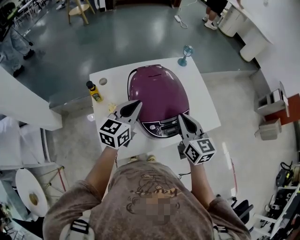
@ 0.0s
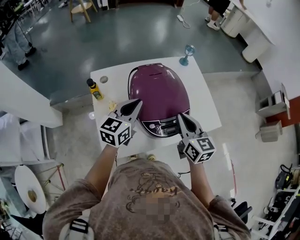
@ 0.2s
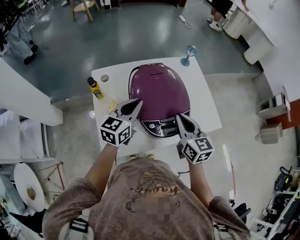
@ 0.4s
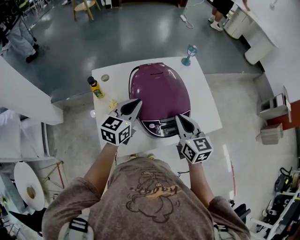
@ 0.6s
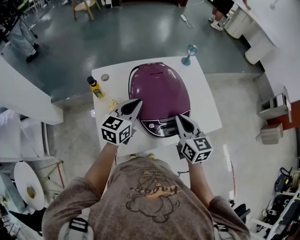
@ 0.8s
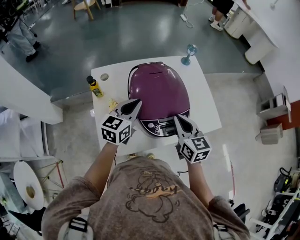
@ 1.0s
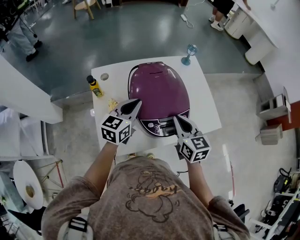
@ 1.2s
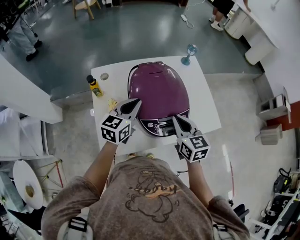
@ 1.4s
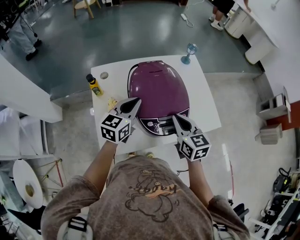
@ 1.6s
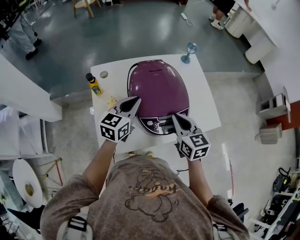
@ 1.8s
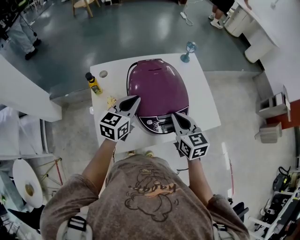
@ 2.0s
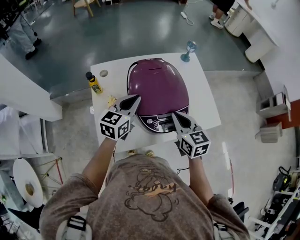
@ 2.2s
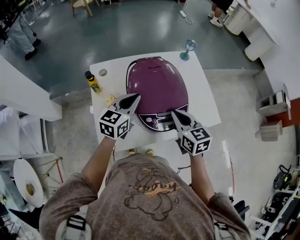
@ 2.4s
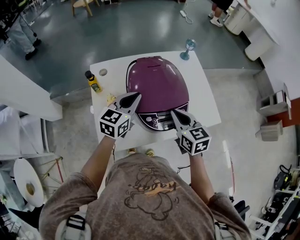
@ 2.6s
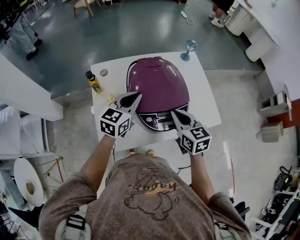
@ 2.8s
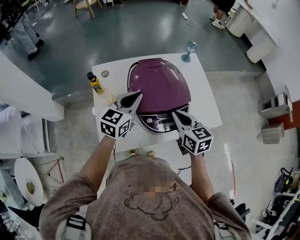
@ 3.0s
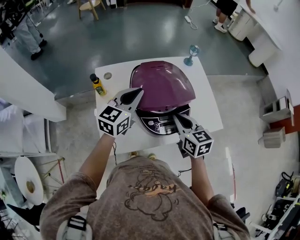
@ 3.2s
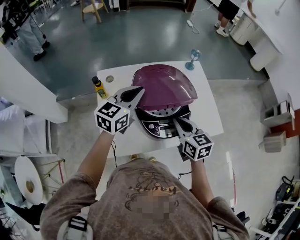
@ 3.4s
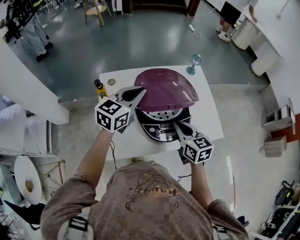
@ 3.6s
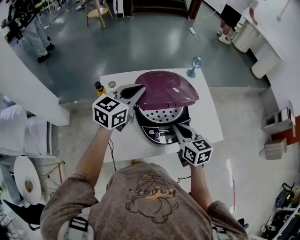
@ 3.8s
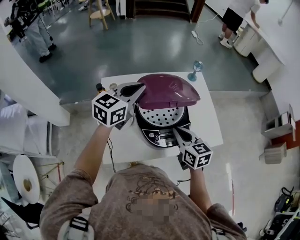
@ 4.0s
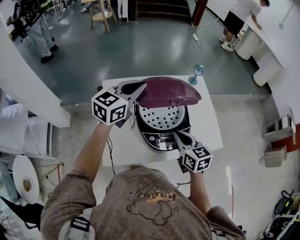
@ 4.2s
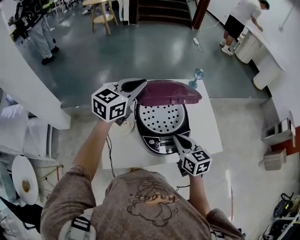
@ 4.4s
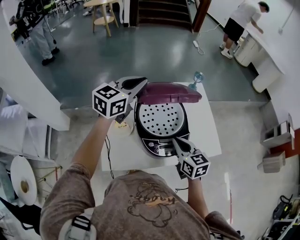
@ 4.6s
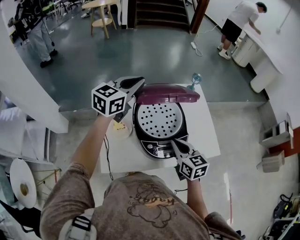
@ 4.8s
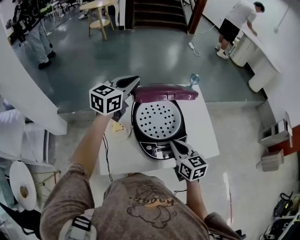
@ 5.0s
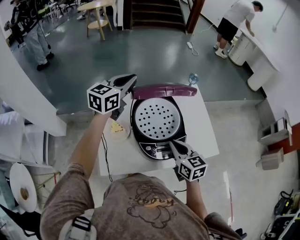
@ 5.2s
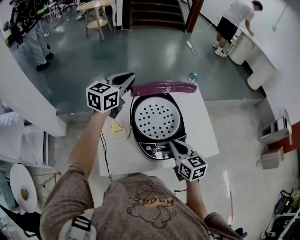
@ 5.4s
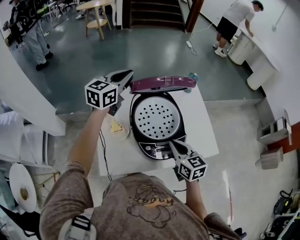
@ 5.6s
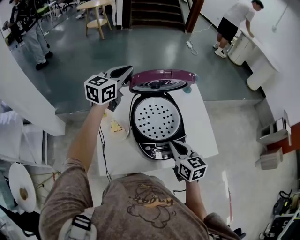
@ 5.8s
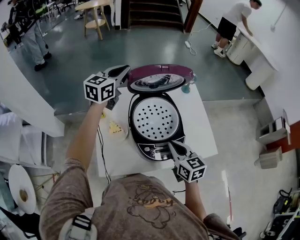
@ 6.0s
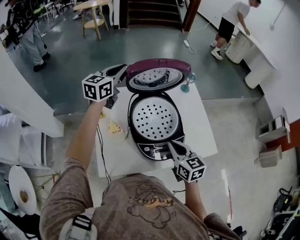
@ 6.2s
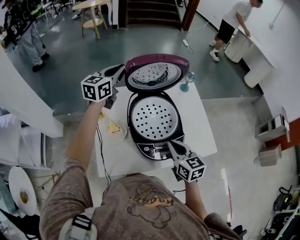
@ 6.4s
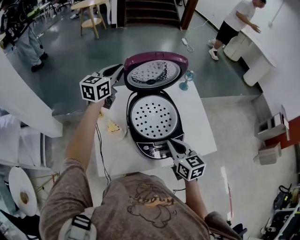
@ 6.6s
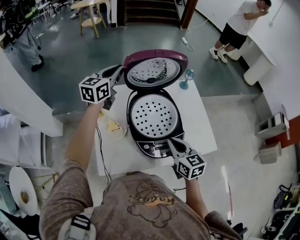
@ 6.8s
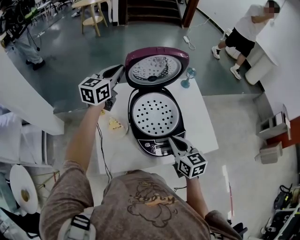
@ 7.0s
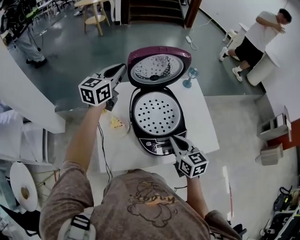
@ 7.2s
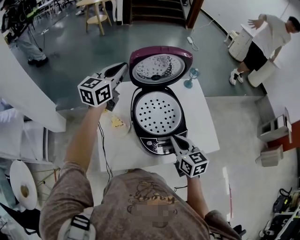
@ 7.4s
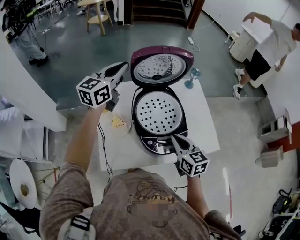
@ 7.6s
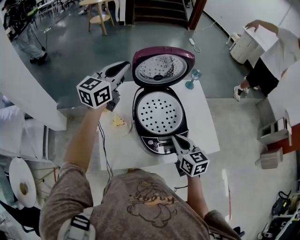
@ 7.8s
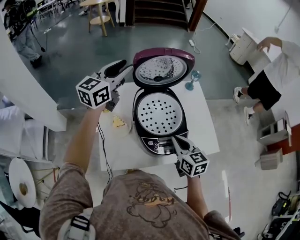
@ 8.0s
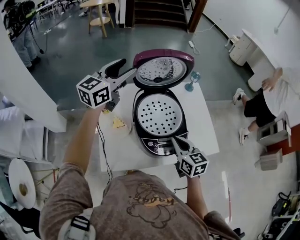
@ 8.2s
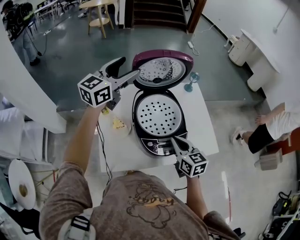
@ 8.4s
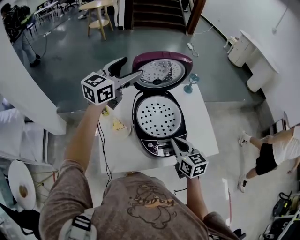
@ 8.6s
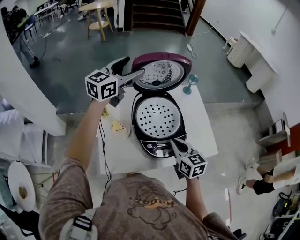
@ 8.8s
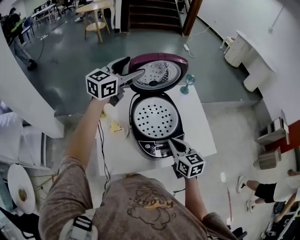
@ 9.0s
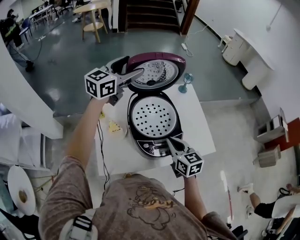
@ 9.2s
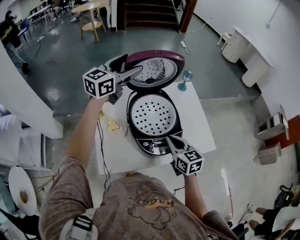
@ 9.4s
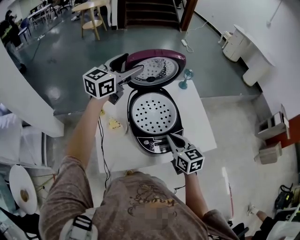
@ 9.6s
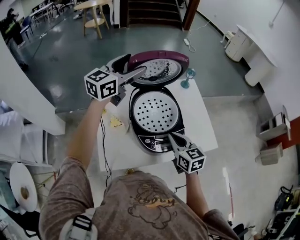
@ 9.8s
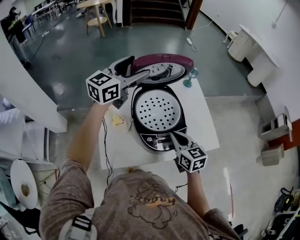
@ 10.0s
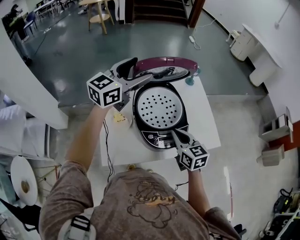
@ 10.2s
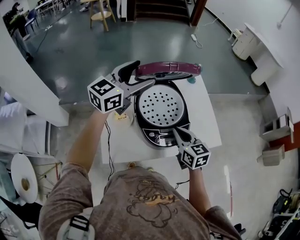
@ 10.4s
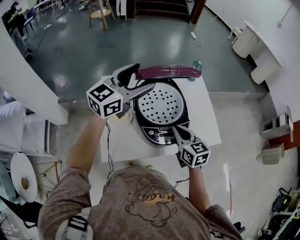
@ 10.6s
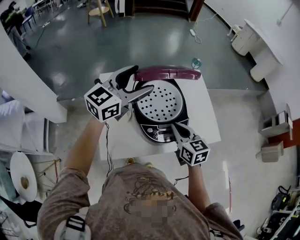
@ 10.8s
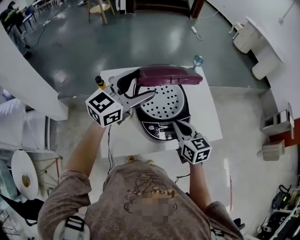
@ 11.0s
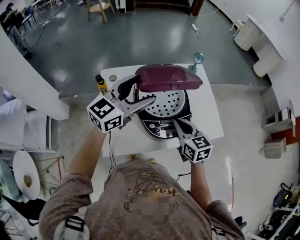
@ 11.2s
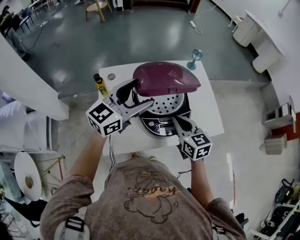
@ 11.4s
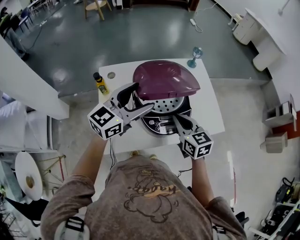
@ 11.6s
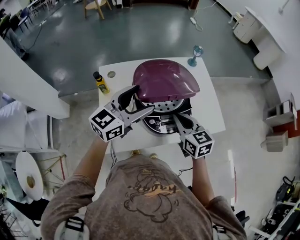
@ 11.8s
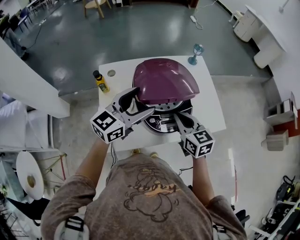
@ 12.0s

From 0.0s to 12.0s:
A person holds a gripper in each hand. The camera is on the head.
From 0.0s to 3.0s: There are only small adjustments of the grippers.
From 3.0s to 4.4s: The left gripper is displaced upward and forward by roughly 15 cm.
From 4.4s to 6.0s: The left gripper goes some 10 cm forward and to the left.
From 6.0s to 7.6s: The left gripper ends up about 5 cm from where it was.
From 7.6s to 9.0s: The left gripper moves about 5 cm, and opens up.
From 9.0s to 10.4s: The left gripper shifts some 10 cm backward.
From 10.4s to 12.0s: The left gripper moves downward and backward, about 15 cm.

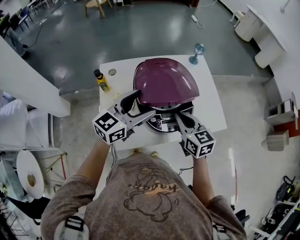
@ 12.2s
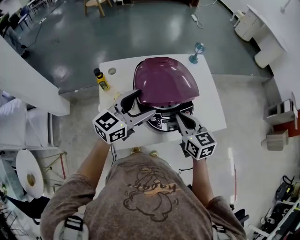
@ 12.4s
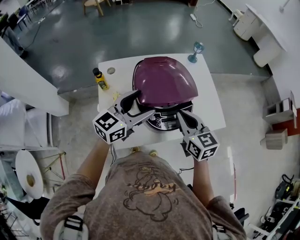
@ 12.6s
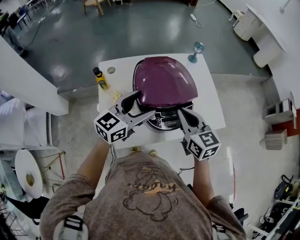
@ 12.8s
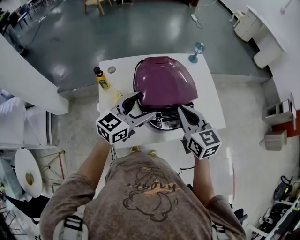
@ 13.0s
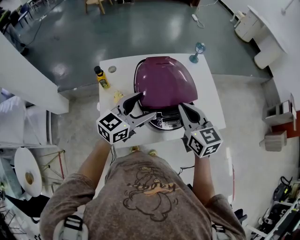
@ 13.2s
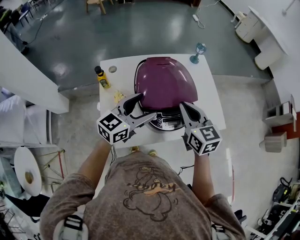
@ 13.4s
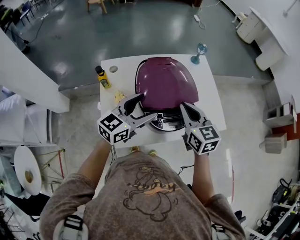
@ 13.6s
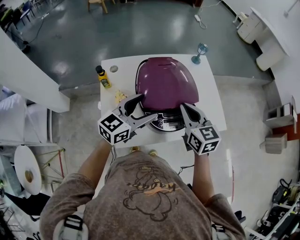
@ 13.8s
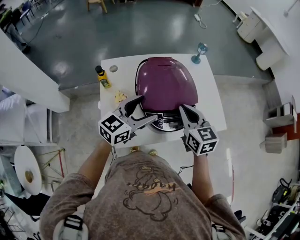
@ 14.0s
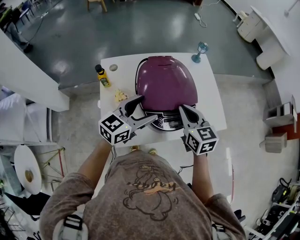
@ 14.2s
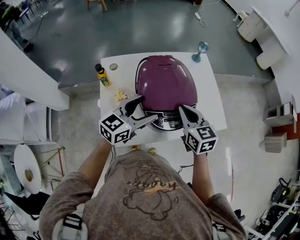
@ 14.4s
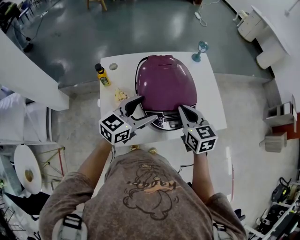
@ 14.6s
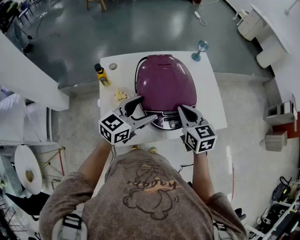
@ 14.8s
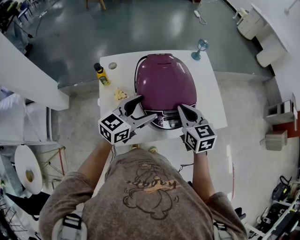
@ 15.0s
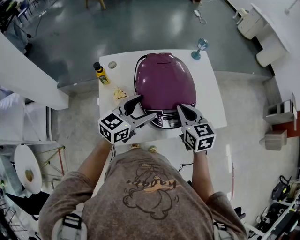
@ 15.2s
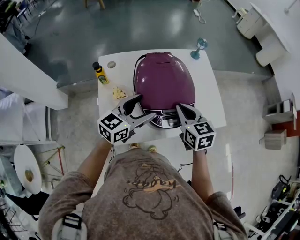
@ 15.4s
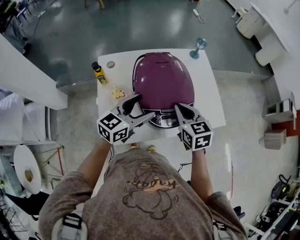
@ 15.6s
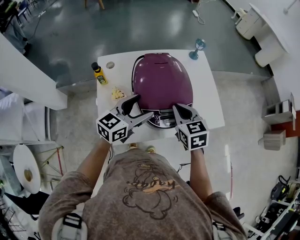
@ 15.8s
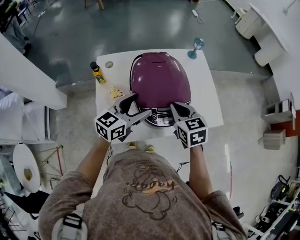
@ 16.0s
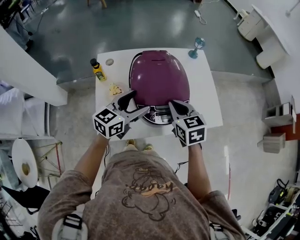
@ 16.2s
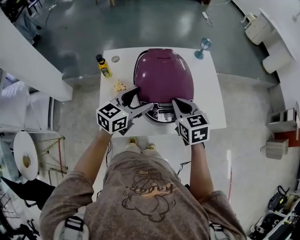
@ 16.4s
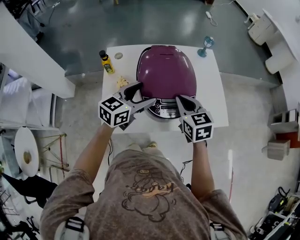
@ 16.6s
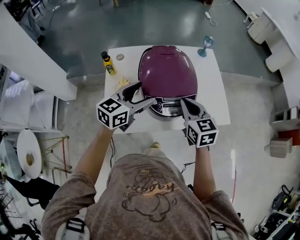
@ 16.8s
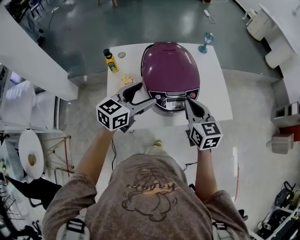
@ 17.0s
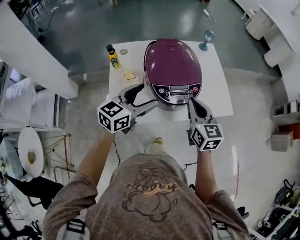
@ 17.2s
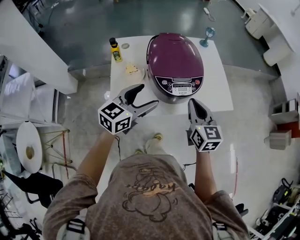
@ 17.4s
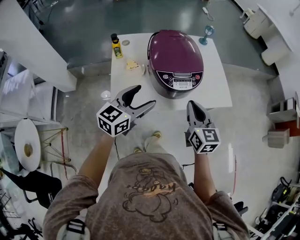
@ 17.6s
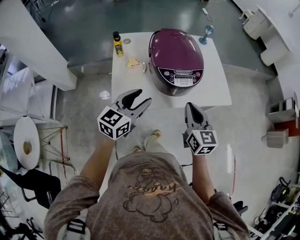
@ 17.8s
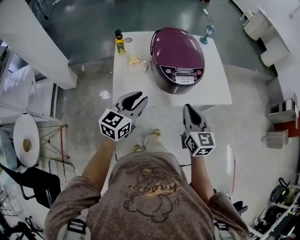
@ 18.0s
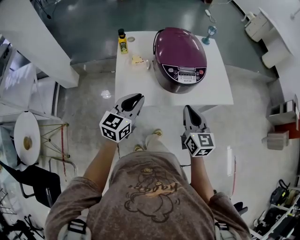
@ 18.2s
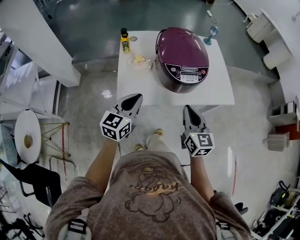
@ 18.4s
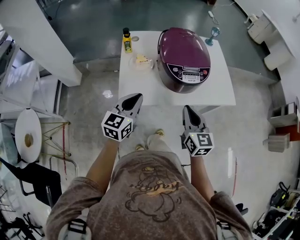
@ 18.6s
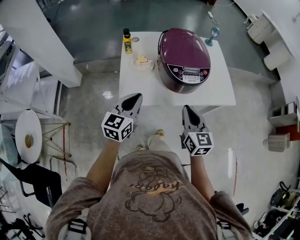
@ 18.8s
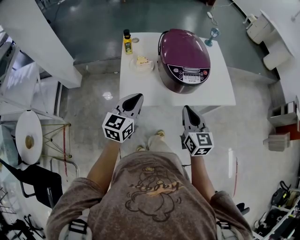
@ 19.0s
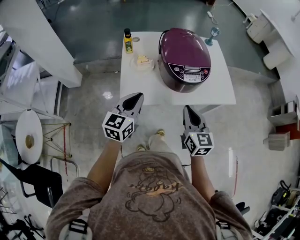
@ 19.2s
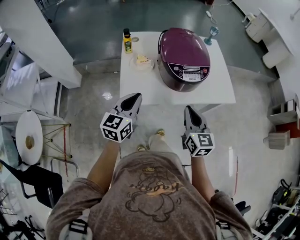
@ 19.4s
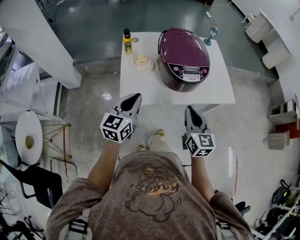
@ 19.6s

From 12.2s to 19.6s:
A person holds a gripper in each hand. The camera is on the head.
From 13.6s to 16.6s: There are only small adjustments of the grippers.
From 16.6s to 18.2s: The two grippers go about 20 cm backward. The right gripper swivels some 20 degrees. Meanwhile the left gripper closes.
From 18.2s to 19.6s: The grippers stay close to where they were, moving slightly.

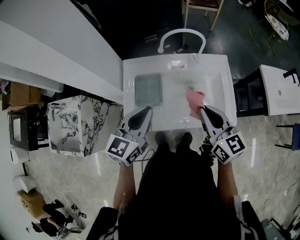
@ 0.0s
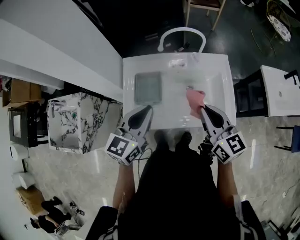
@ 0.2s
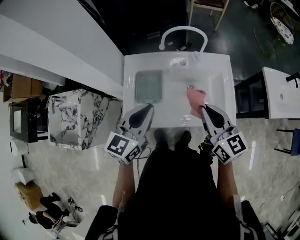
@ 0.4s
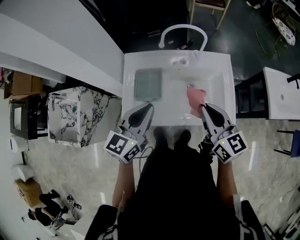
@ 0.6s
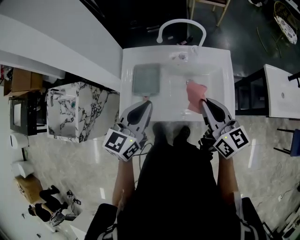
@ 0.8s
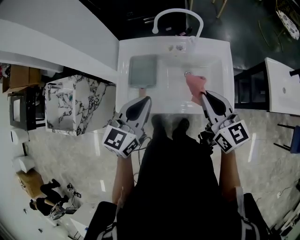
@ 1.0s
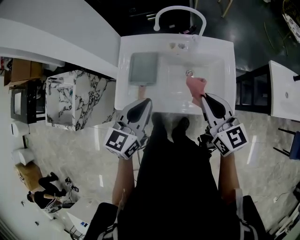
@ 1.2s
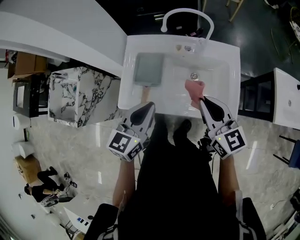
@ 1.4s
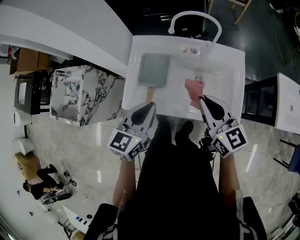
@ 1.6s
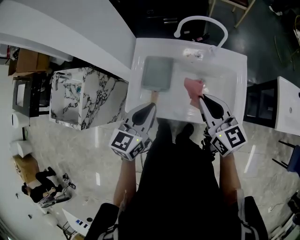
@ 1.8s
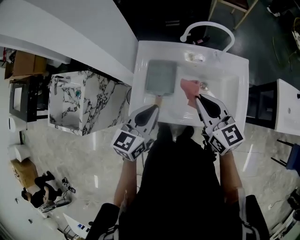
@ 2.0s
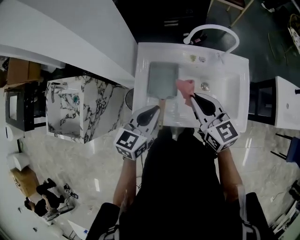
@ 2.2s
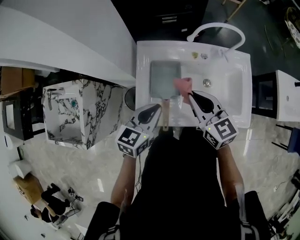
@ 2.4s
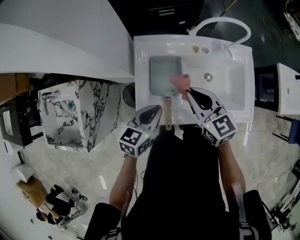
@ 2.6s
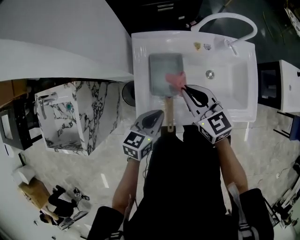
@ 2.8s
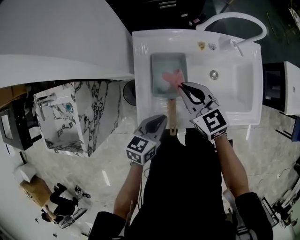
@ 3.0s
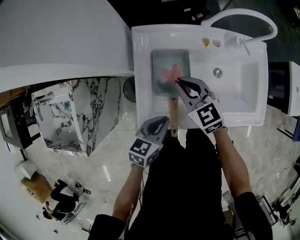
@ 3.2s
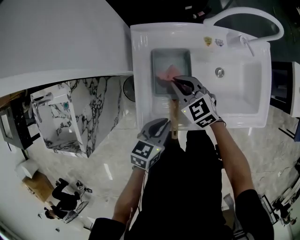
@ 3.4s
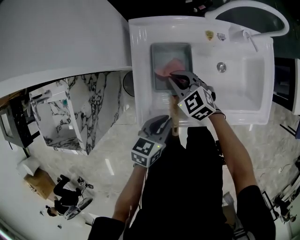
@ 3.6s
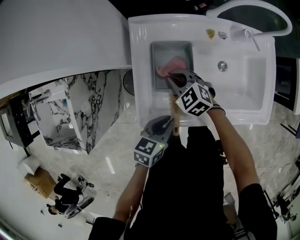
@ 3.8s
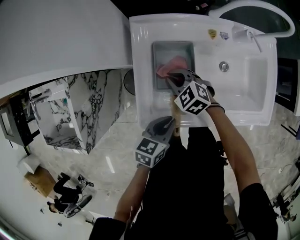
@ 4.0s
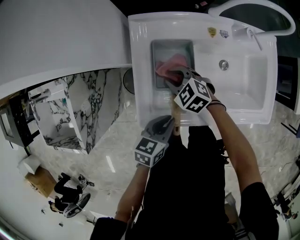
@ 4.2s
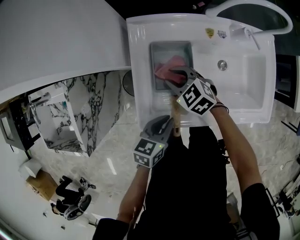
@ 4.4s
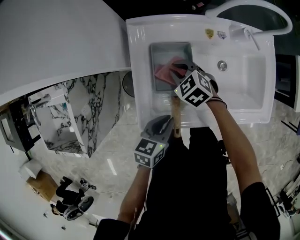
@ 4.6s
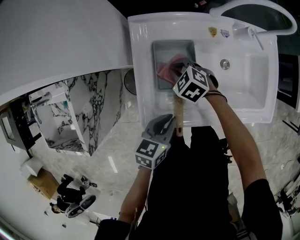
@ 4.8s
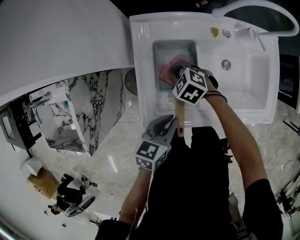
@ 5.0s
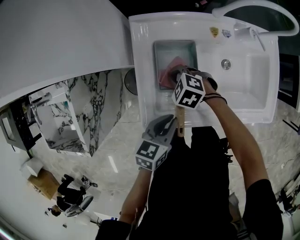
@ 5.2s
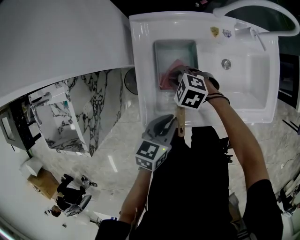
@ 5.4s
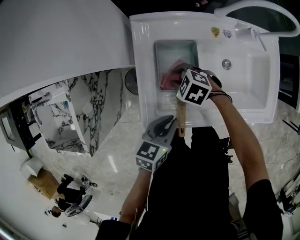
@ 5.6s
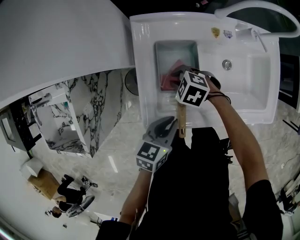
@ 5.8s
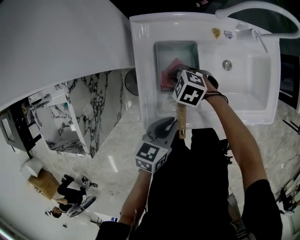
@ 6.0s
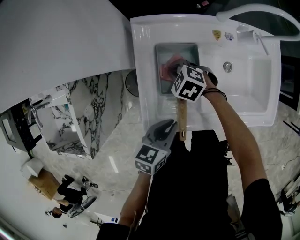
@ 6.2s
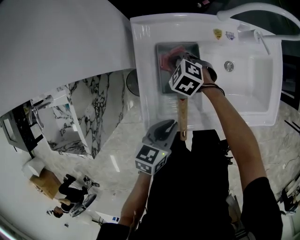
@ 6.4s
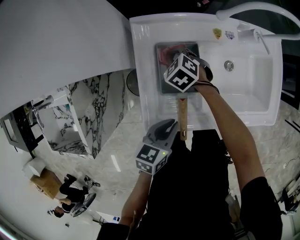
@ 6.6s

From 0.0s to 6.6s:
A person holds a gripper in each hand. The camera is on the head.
From 0.0s to 1.6s: The left gripper changes place by about 5 cm.
From 1.6s to 3.2s: The left gripper goes about 25 cm downward and to the left, and swivels about 30 degrees. The right gripper travels to the left, downward and forward by roughly 35 cm, and turns by roughly 20 degrees.
From 3.2s to 5.0s: The right gripper heads downward, covering about 15 cm, points its fingers about 30 degrees further downward, and opens, then closes again.
From 5.0s to 6.6s: The right gripper shifts by about 10 cm, and opens, then closes once more.
